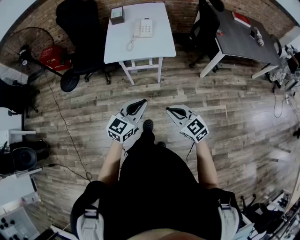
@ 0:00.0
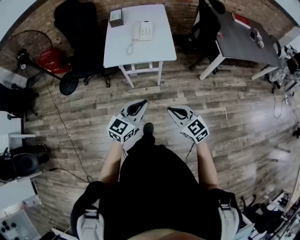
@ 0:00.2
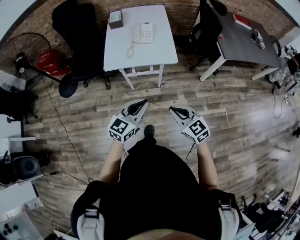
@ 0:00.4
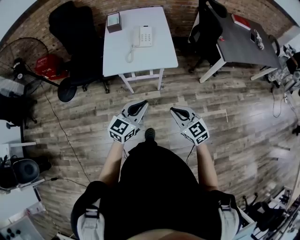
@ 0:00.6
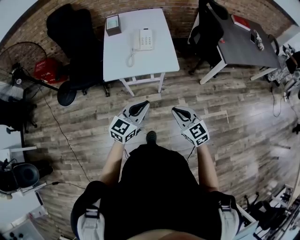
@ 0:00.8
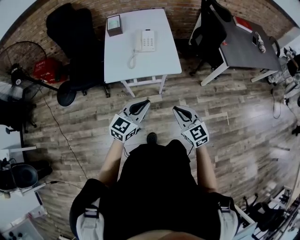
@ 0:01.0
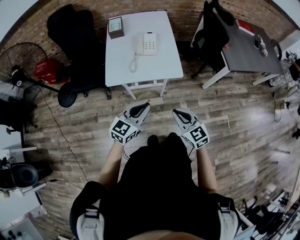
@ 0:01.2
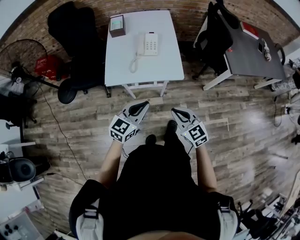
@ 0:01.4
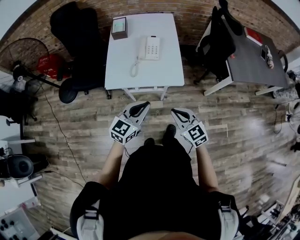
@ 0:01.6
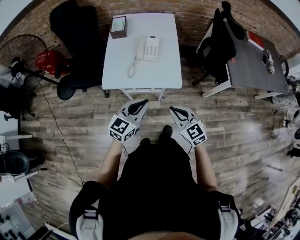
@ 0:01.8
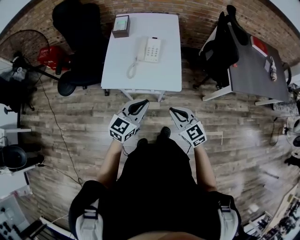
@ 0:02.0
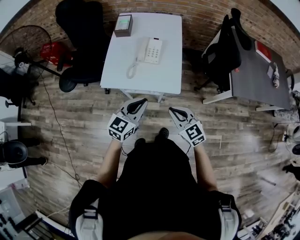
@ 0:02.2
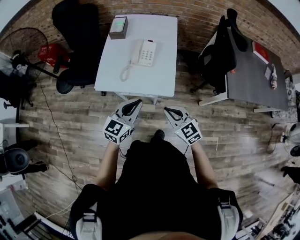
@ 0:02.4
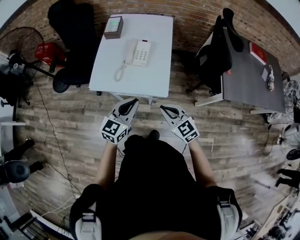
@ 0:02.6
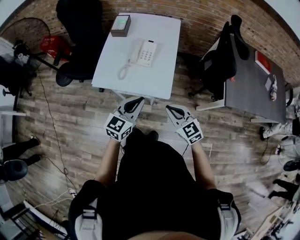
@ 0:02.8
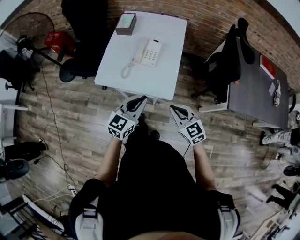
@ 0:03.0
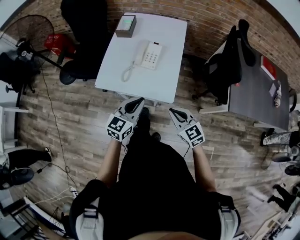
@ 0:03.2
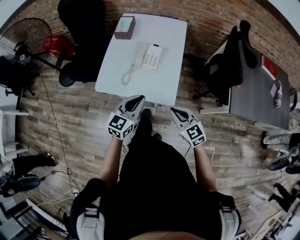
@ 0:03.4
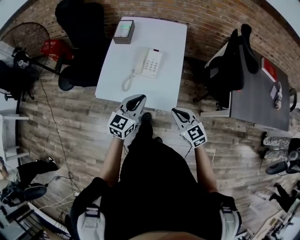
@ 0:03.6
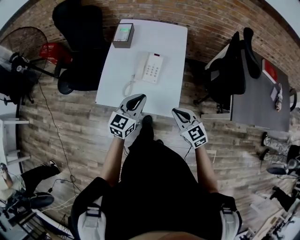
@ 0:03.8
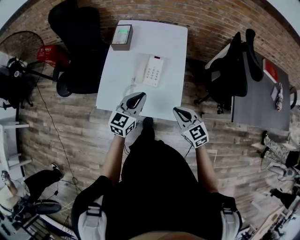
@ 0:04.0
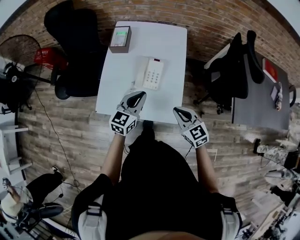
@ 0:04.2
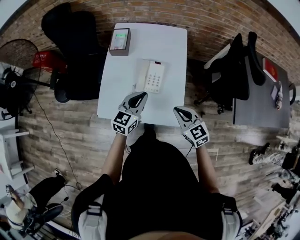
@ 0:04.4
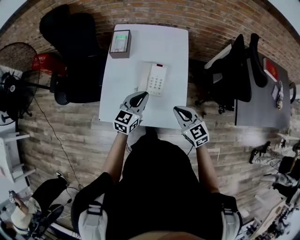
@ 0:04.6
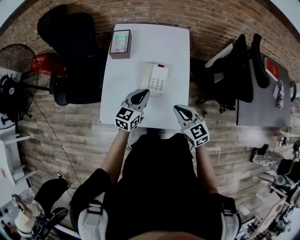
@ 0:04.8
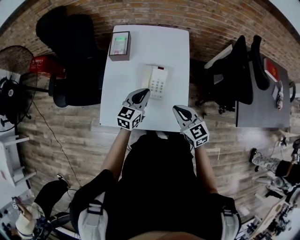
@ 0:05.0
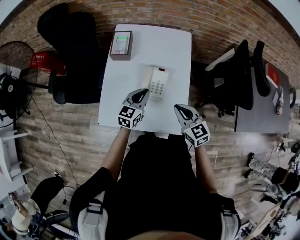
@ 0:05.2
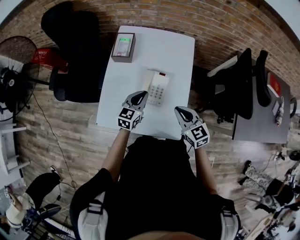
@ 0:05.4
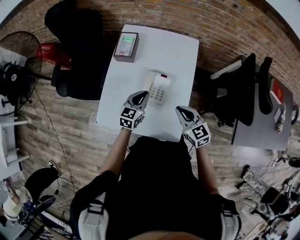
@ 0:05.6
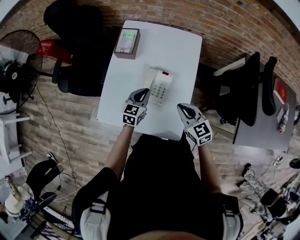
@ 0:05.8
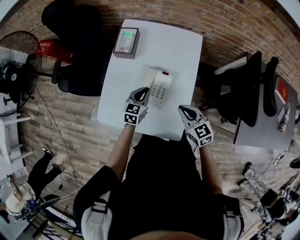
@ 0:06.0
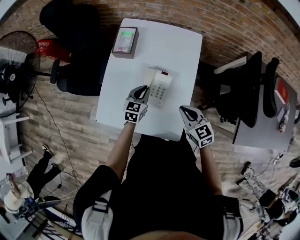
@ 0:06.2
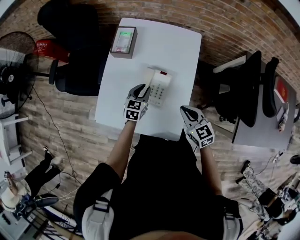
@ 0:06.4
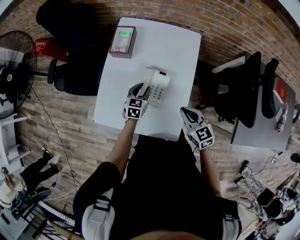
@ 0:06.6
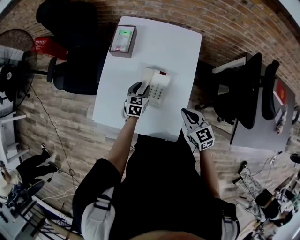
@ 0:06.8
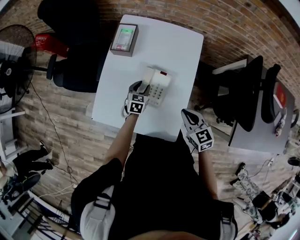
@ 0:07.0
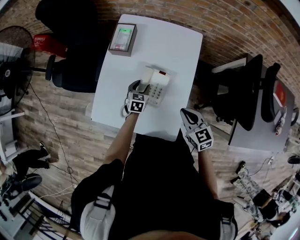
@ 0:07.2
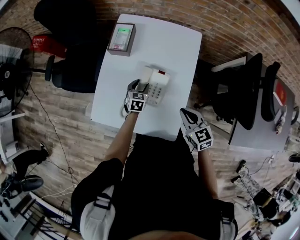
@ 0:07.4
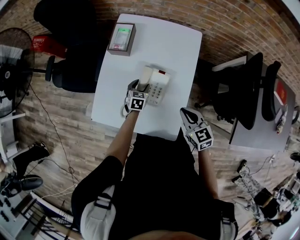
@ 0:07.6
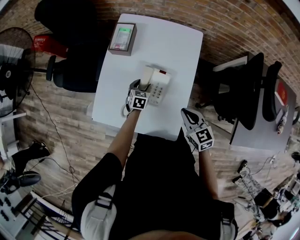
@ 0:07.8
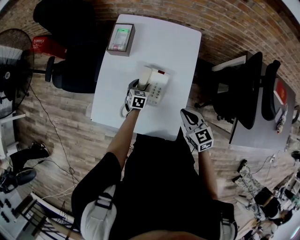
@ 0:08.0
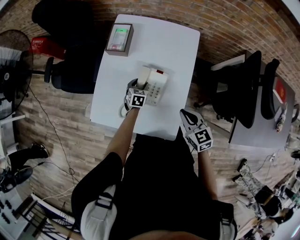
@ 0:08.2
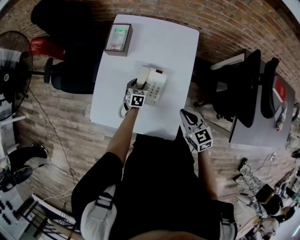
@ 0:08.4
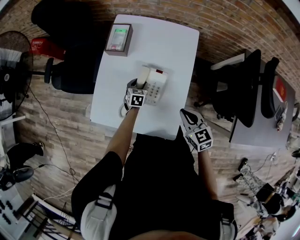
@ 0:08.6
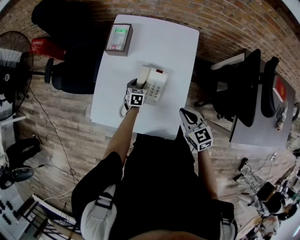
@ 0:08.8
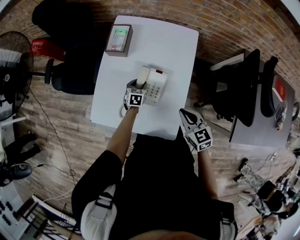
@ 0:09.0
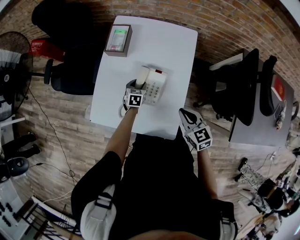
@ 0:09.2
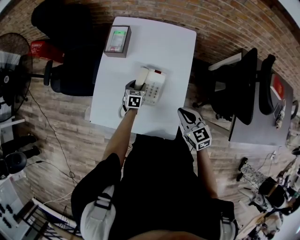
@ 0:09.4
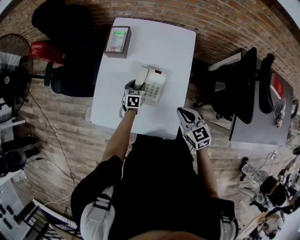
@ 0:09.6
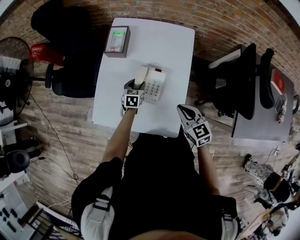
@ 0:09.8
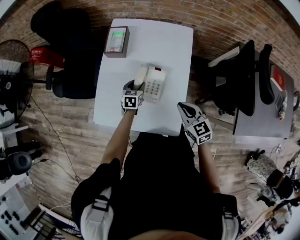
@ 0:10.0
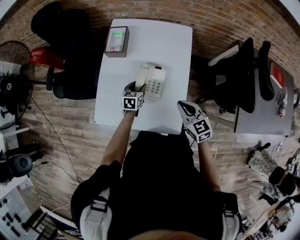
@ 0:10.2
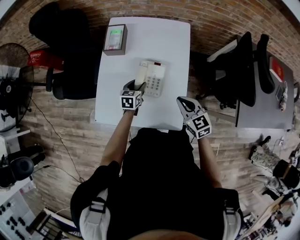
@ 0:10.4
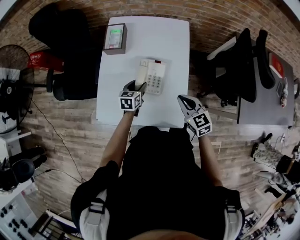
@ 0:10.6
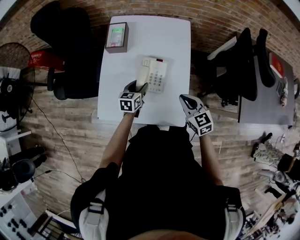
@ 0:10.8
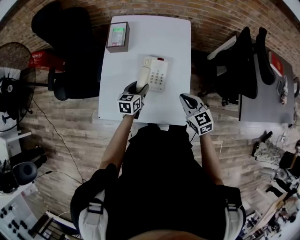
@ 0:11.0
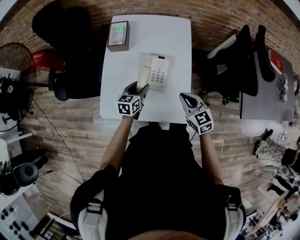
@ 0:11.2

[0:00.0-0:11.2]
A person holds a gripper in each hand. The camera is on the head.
0:00.0 to 0:01.6: The two grippers go roughly 25 cm forward.
0:01.6 to 0:03.2: The grippers both shift forward and to the right by about 15 cm.
0:03.2 to 0:04.8: The two grippers go approximately 25 cm forward.
0:04.8 to 0:06.4: The right gripper travels forward and to the right by roughly 10 cm. The left gripper is displaced downward and forward by approximately 15 cm, and swivels some 20 degrees.
0:06.4 to 0:08.0: The left gripper travels downward by about 10 cm, and opens up.
0:08.0 to 0:09.6: The grippers move only a little.
0:09.6 to 0:11.2: The right gripper shifts by roughly 5 cm, while the left gripper heads backward and upward, covering roughly 15 cm, and turns by some 20 degrees.

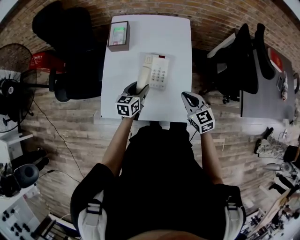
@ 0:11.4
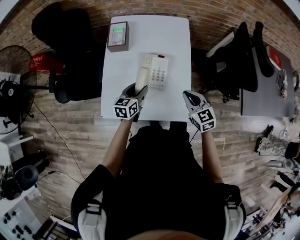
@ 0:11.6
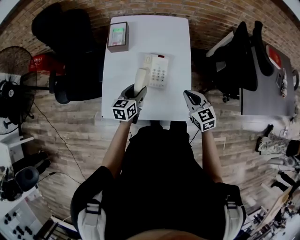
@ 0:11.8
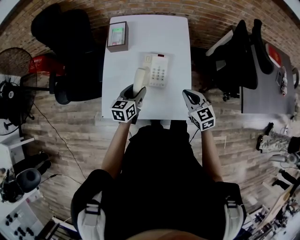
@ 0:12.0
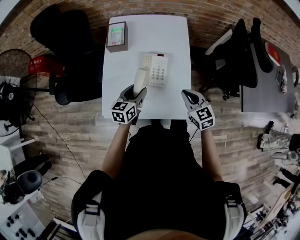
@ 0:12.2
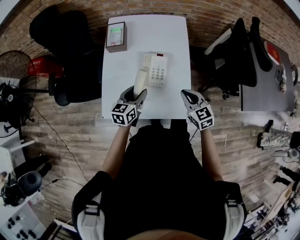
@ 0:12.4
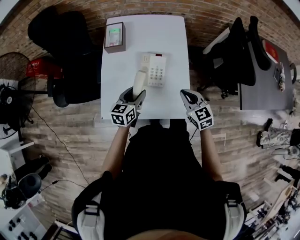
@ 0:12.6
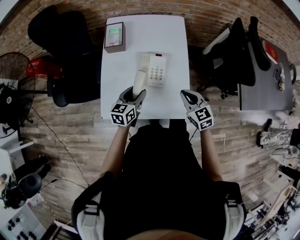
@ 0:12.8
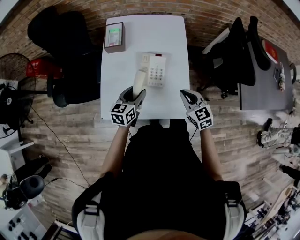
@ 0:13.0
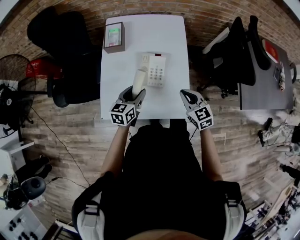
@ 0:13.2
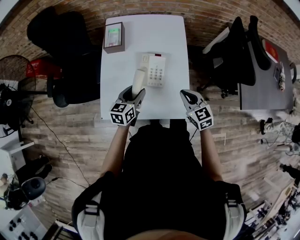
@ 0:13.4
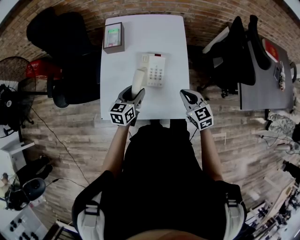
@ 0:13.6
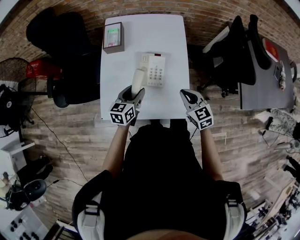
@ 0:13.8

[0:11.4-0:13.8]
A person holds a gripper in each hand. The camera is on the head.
0:11.4 to 0:12.6: The left gripper ends up roughly 5 cm from where it was.
0:12.6 to 0:13.8: Both grippers stay about where they are.

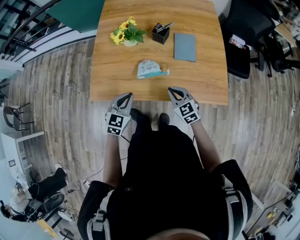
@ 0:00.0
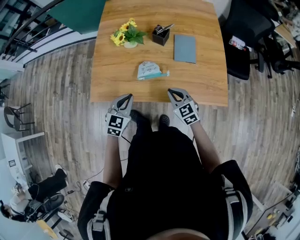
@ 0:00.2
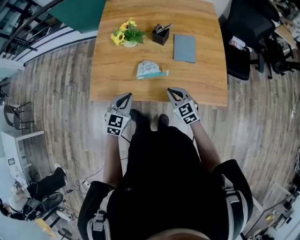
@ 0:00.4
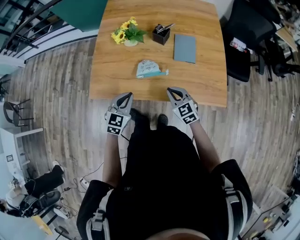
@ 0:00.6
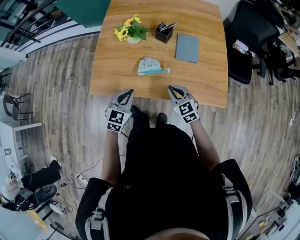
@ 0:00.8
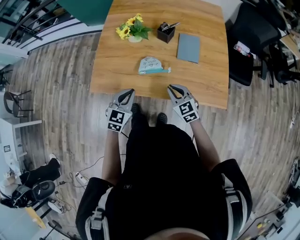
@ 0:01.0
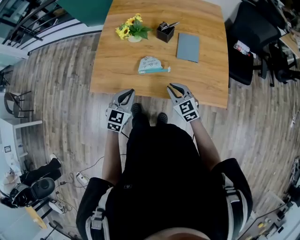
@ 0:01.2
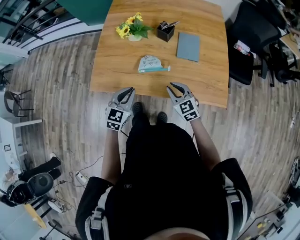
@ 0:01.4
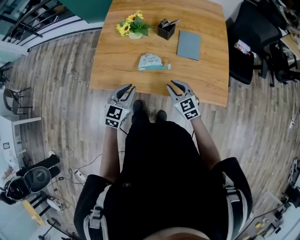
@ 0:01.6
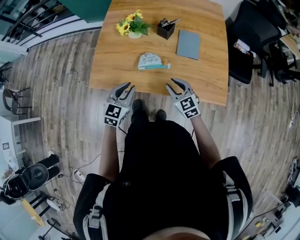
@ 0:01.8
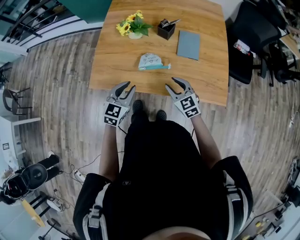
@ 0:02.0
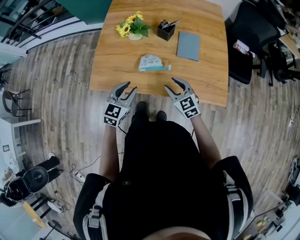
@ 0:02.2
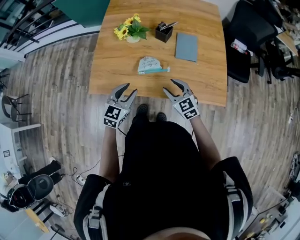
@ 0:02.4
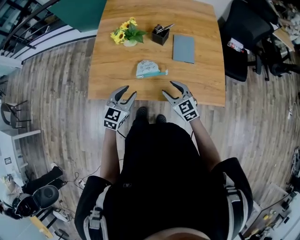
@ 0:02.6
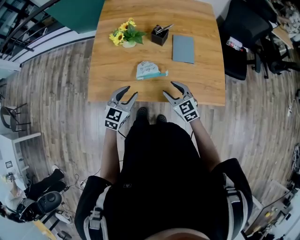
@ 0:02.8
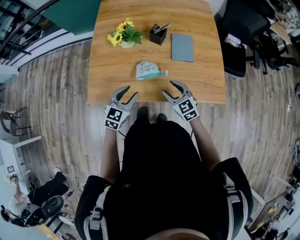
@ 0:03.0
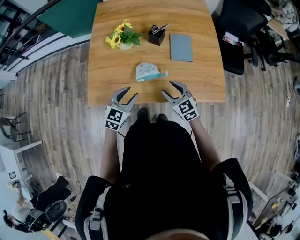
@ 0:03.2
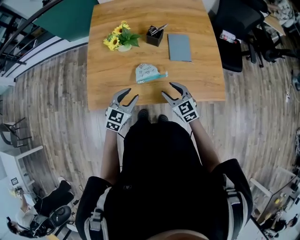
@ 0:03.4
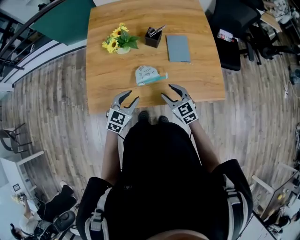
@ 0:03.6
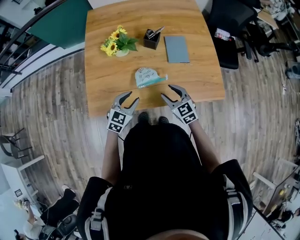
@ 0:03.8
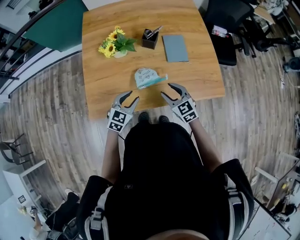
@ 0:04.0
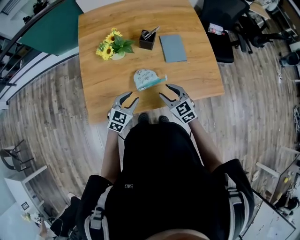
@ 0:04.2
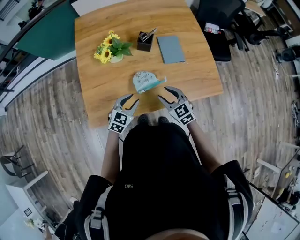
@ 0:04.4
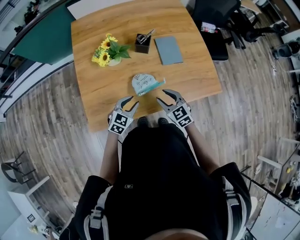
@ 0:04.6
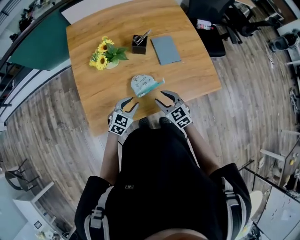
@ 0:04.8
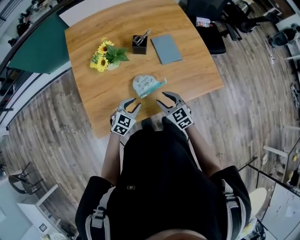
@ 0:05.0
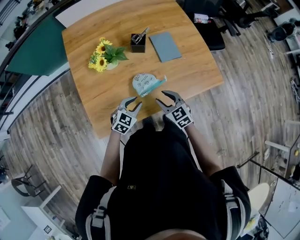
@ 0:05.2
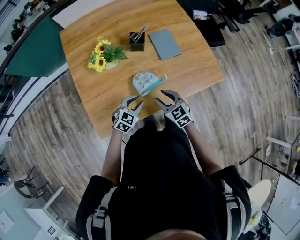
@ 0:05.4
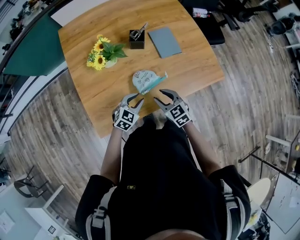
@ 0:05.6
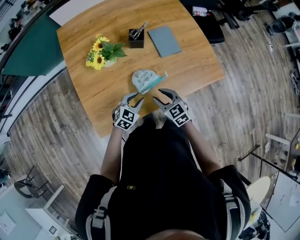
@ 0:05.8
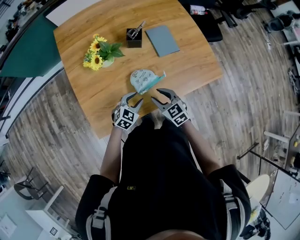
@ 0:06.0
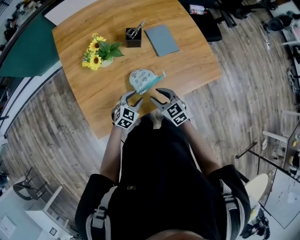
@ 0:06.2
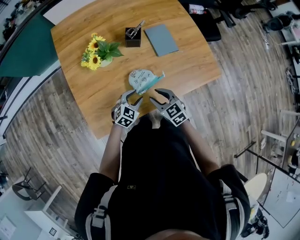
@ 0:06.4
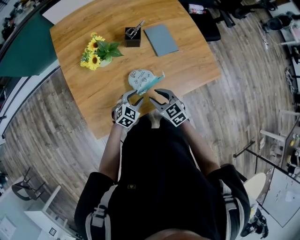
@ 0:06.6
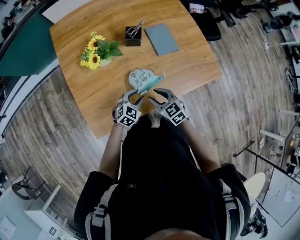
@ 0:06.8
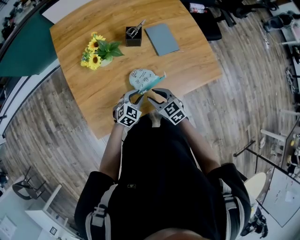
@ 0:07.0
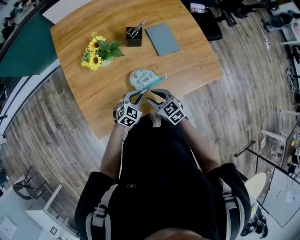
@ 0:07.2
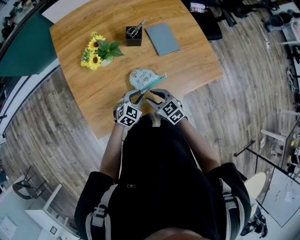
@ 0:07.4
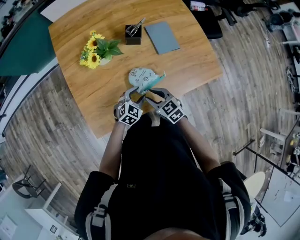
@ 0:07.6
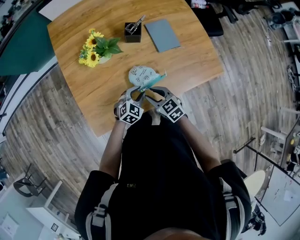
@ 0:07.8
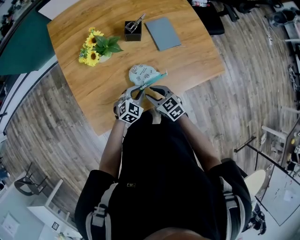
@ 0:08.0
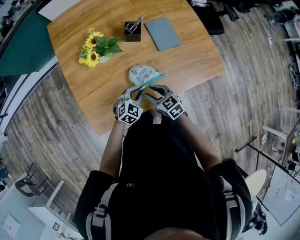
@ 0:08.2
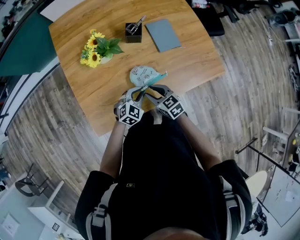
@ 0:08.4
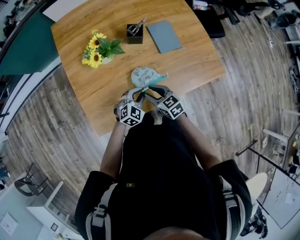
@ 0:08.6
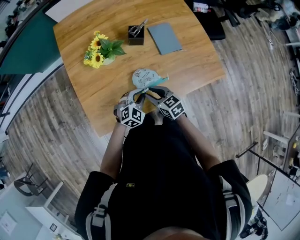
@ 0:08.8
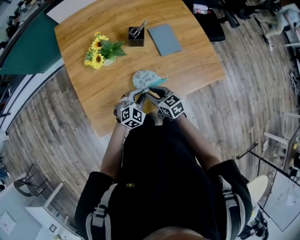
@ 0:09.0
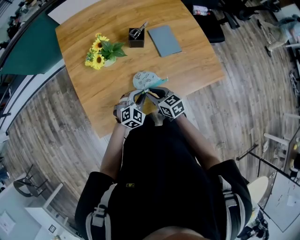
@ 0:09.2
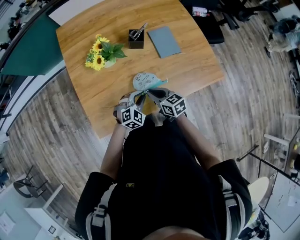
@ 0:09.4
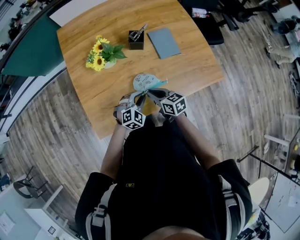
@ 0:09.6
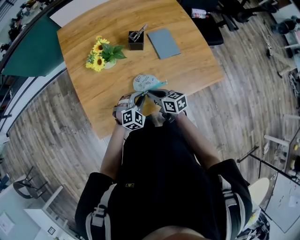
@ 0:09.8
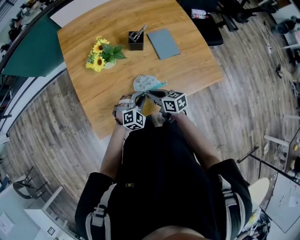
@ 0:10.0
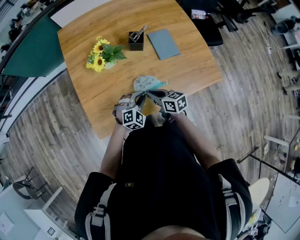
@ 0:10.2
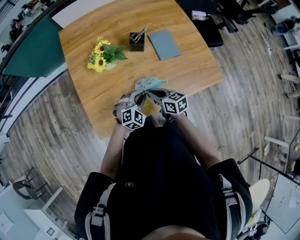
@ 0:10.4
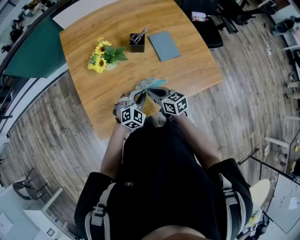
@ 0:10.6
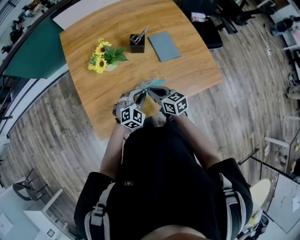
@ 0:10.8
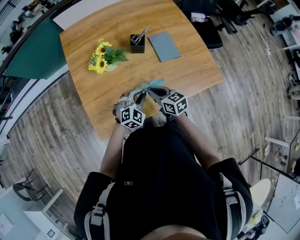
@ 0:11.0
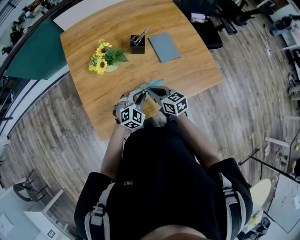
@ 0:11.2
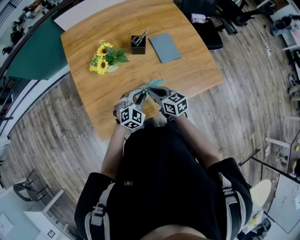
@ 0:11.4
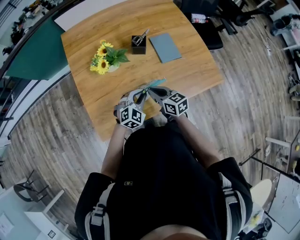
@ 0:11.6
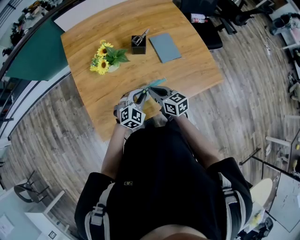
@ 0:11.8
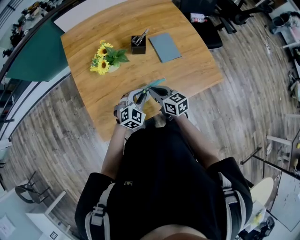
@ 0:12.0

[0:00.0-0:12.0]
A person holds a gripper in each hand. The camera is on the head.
0:00.0 to 0:01.6: The grippers stay close to where they were, moving slightly.
0:01.6 to 0:03.0: The left gripper opens; the right gripper opens.
0:03.0 to 0:04.4: The left gripper moves downward, approximately 5 cm, while the right gripper ends up some 5 cm from where it was.
0:04.4 to 0:06.0: The left gripper goes roughly 5 cm downward. The right gripper changes place by about 5 cm.
0:06.0 to 0:07.6: The left gripper closes, then opens again.
0:07.6 to 0:09.0: The left gripper closes its fingers.
0:09.0 to 0:10.4: The right gripper closes.
0:10.4 to 0:12.0: The grippers move only a little.
